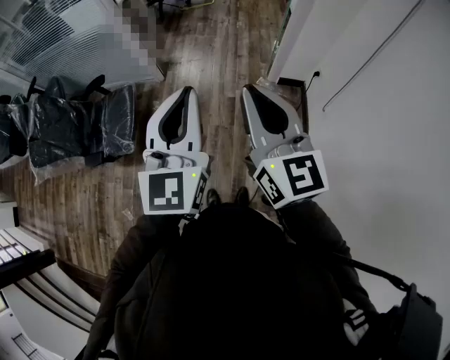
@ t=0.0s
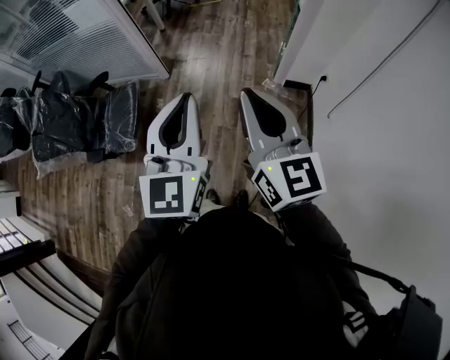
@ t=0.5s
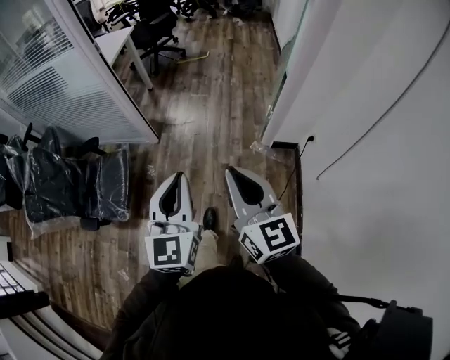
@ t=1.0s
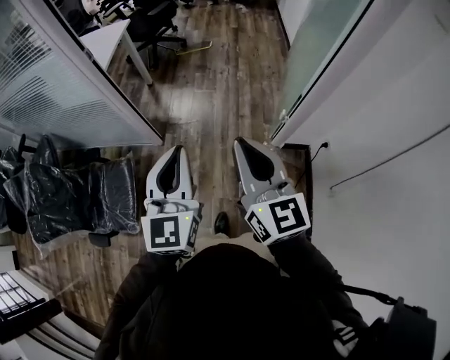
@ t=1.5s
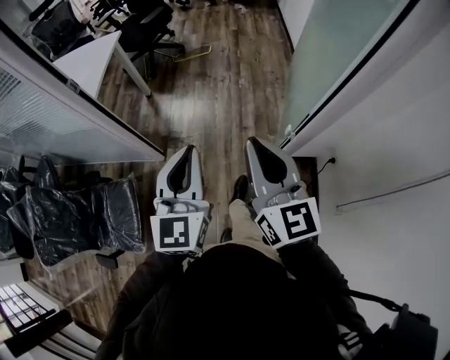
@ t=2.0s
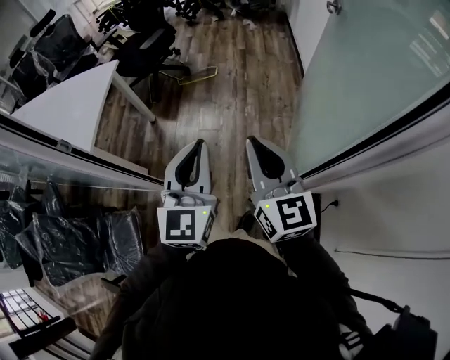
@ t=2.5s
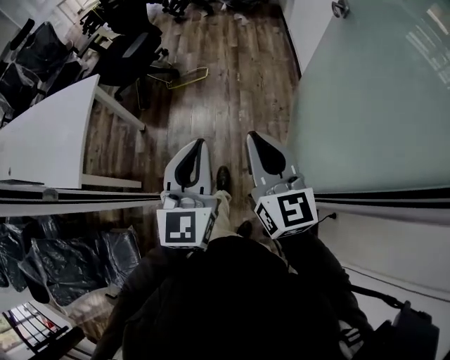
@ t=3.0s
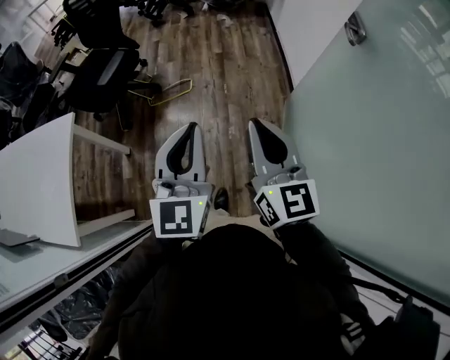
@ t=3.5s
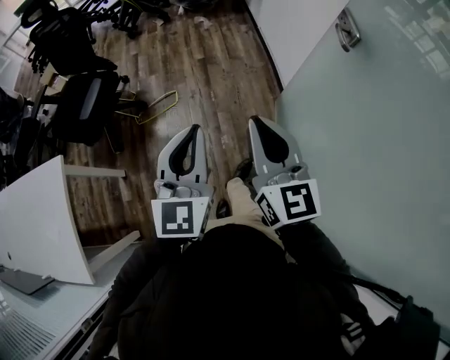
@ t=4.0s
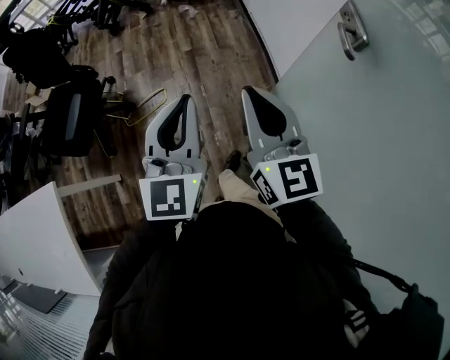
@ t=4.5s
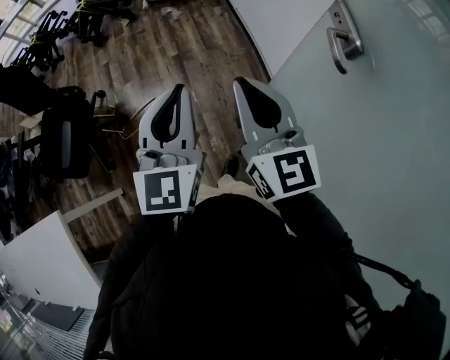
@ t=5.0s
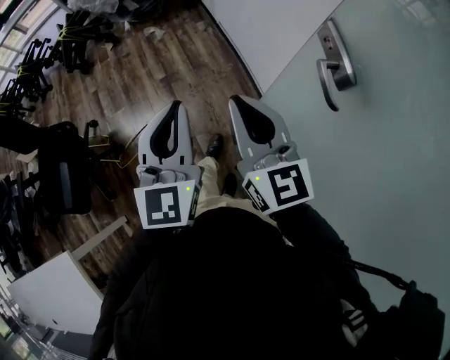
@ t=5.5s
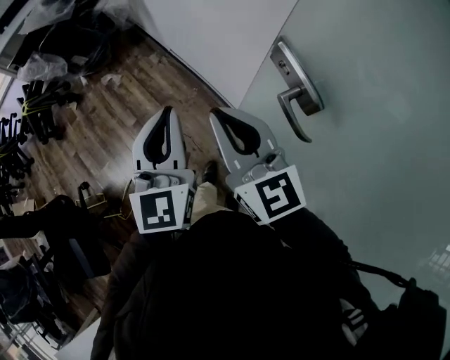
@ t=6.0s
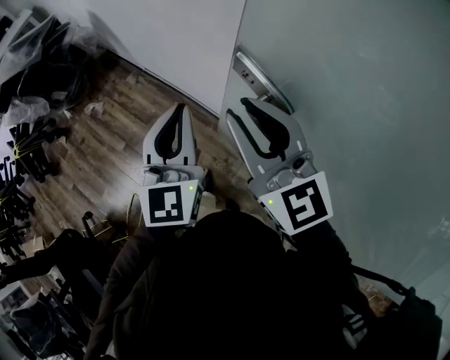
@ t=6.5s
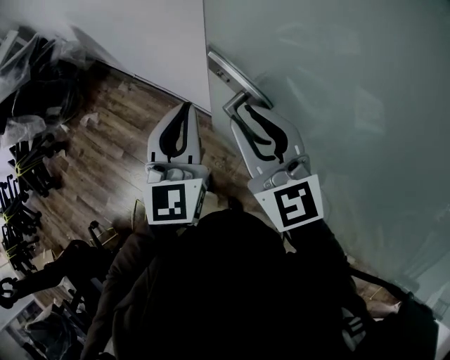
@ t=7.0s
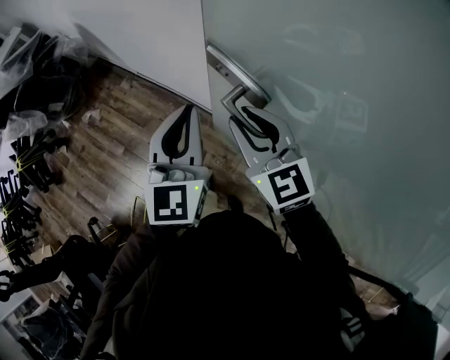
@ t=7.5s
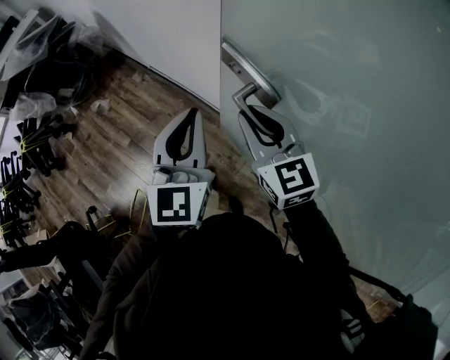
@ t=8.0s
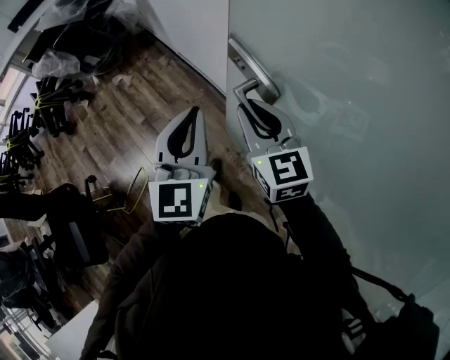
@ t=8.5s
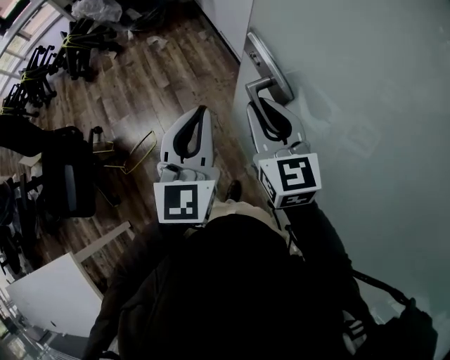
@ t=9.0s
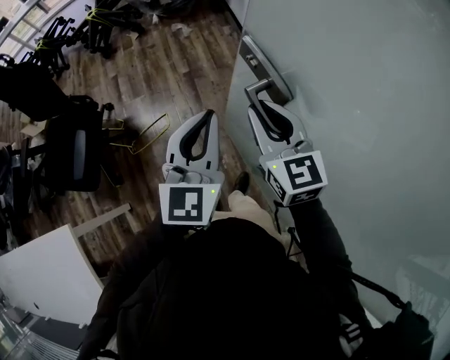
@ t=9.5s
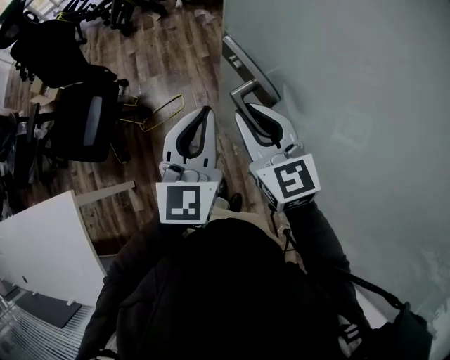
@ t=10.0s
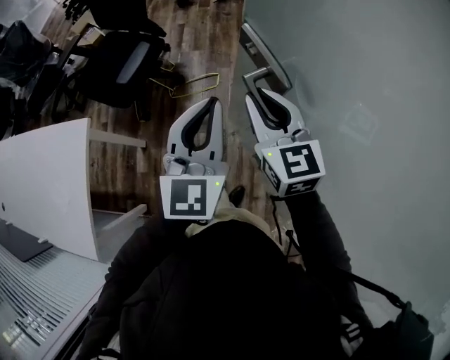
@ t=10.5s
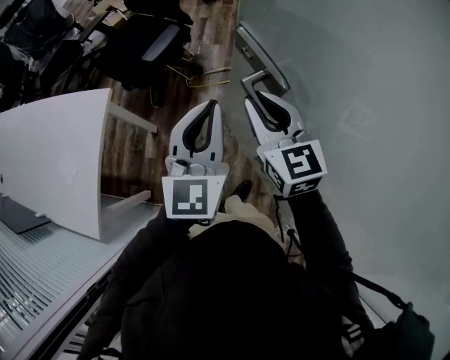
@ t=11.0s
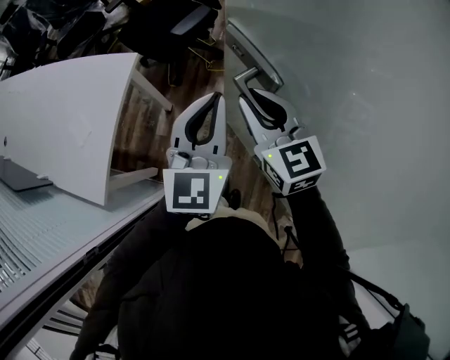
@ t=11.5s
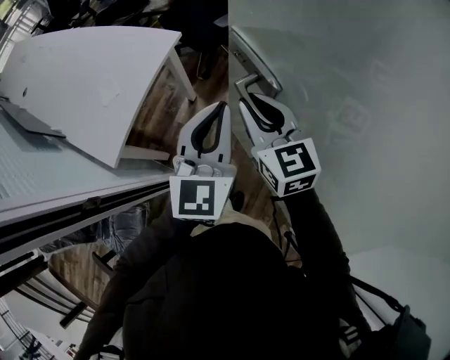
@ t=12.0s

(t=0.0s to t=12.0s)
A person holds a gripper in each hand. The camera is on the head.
t=0.0s - t=2.0s: The two grippers travel together, forward, roughly 50 cm.
t=2.0s - t=4.0s: Both grippers are carried forward, approximately 80 cm.
t=4.0s - t=6.0s: The two grippers travel together, forward and to the right, about 50 cm. The left gripper changes its angle by roughly 30 degrees.
t=6.0s - t=8.0s: Both grippers move to the right, about 15 cm.
t=8.0s - t=10.0s: The pair of grippers is taken approximately 50 cm. The left gripper turns by roughly 40 degrees, while the right gripper swivels about 40 degrees.
t=10.0s - t=12.0s: The two grippers travel together, approximately 50 cm. The right gripper changes its angle by some 40 degrees, while the left gripper rotates about 40 degrees.

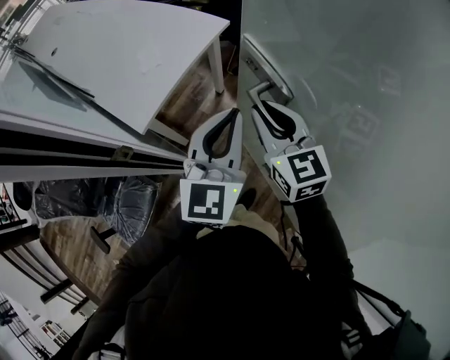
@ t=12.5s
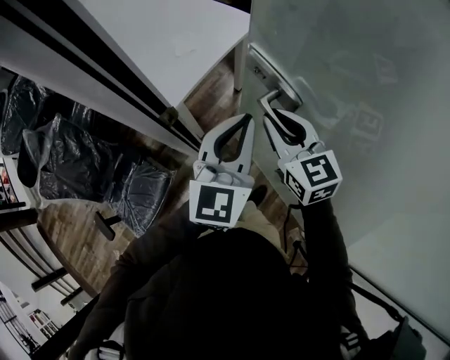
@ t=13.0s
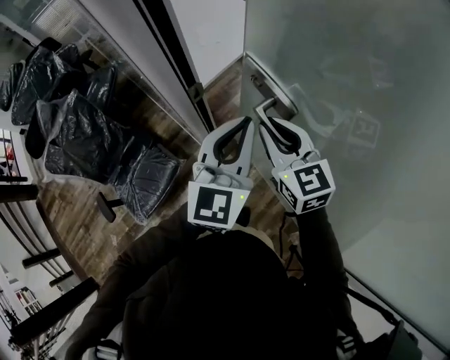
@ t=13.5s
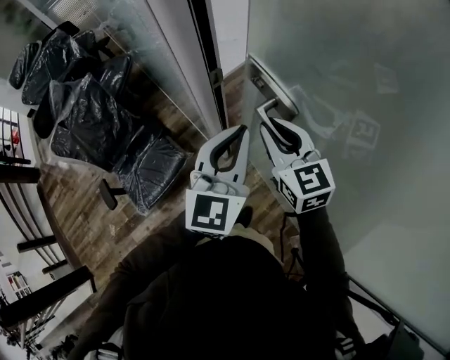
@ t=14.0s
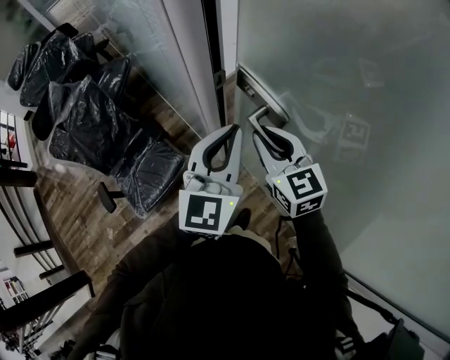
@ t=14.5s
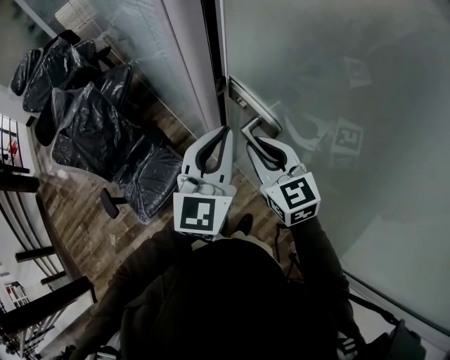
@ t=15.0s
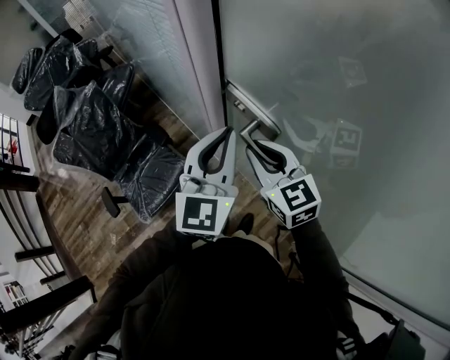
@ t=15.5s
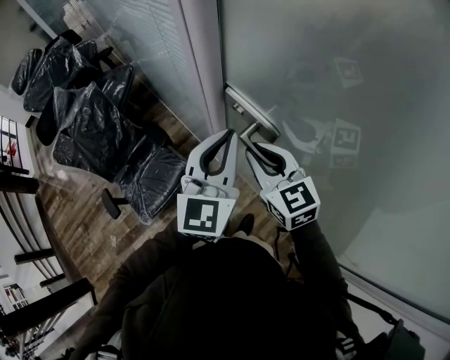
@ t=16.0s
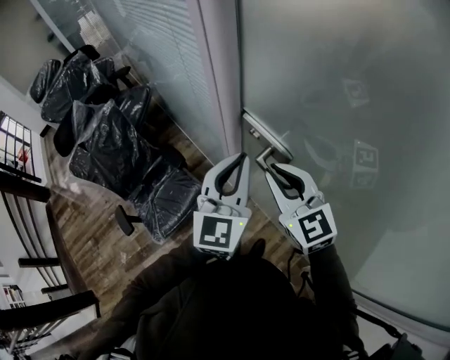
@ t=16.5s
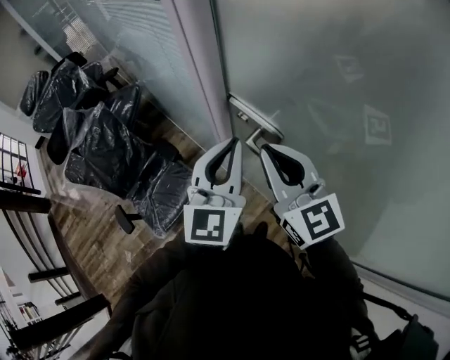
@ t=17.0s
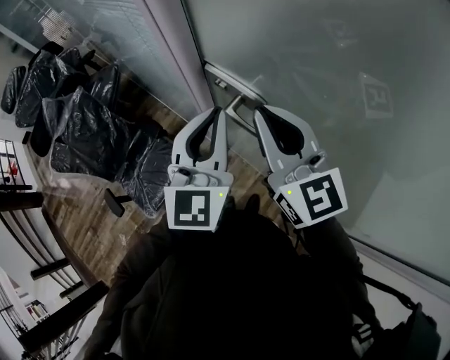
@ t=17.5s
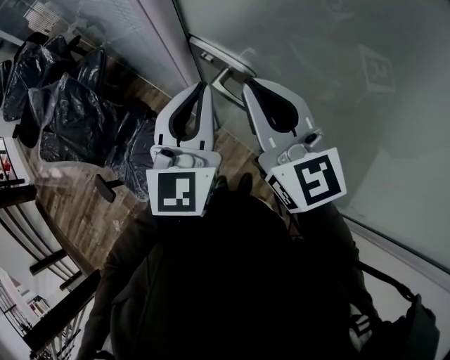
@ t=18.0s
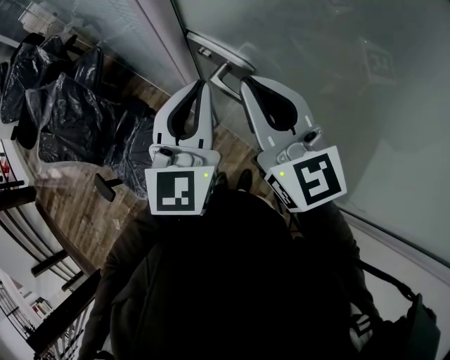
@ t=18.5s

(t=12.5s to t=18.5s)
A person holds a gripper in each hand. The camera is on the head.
t=12.5s - t=14.5s: Both grippers travel together to the left and backward, roughly 30 cm.
t=14.5s - t=16.5s: The right gripper moves approximately 10 cm.
t=16.5s - t=18.5s: The right gripper moves upward, roughly 5 cm.

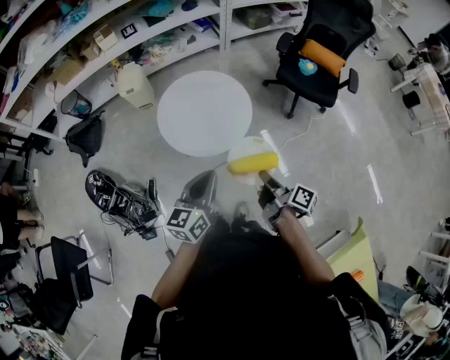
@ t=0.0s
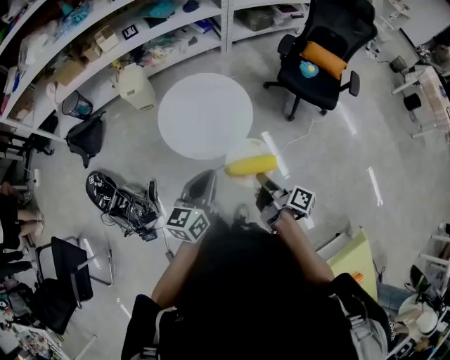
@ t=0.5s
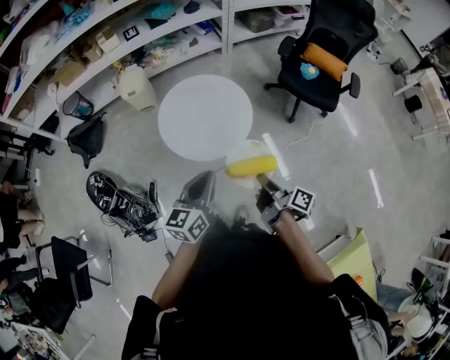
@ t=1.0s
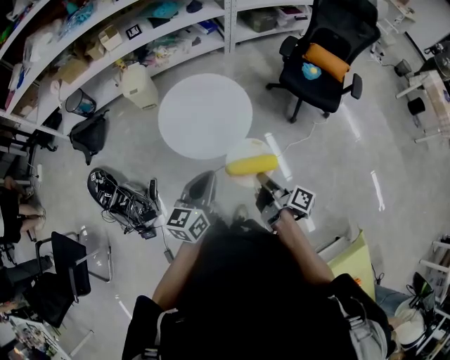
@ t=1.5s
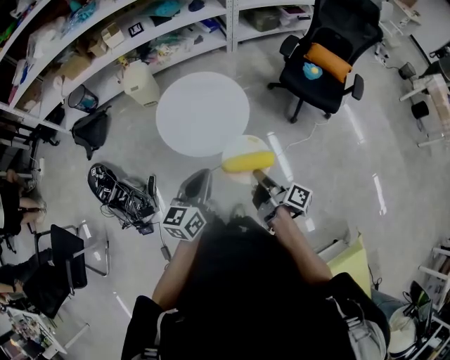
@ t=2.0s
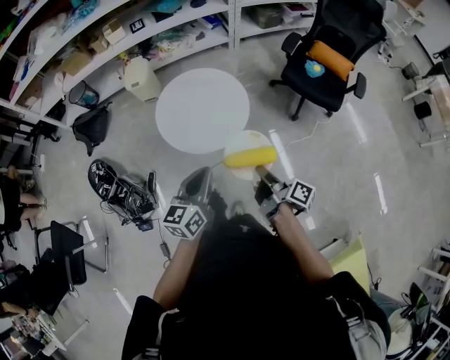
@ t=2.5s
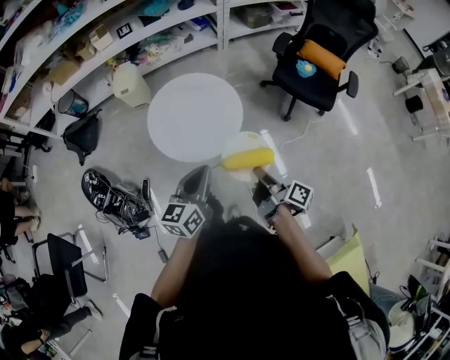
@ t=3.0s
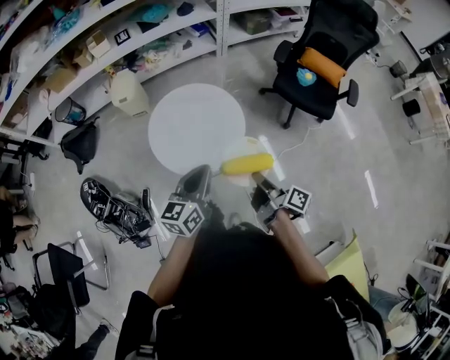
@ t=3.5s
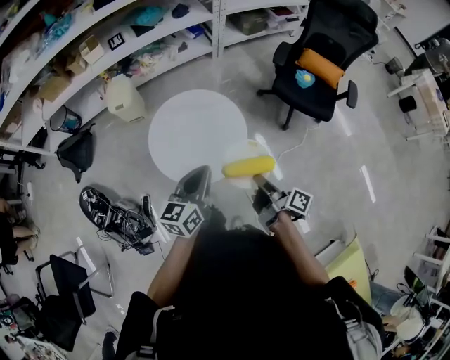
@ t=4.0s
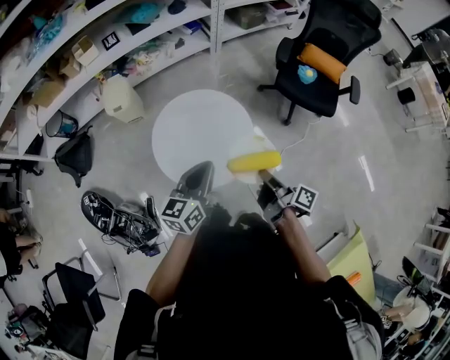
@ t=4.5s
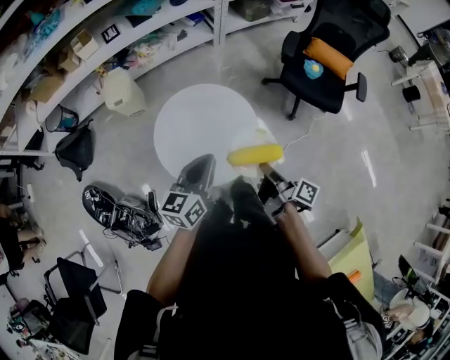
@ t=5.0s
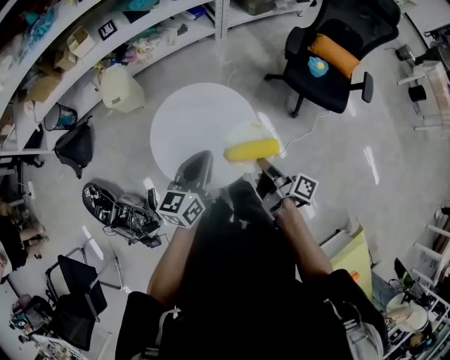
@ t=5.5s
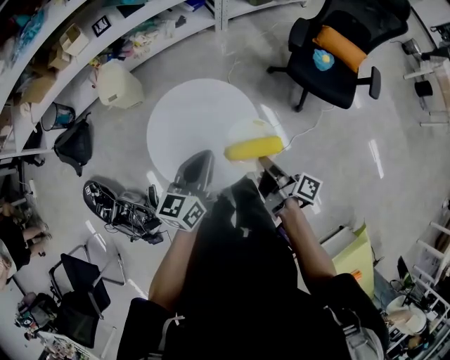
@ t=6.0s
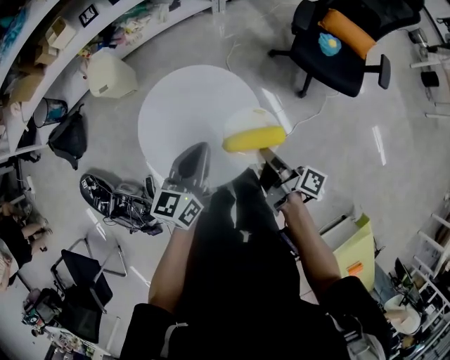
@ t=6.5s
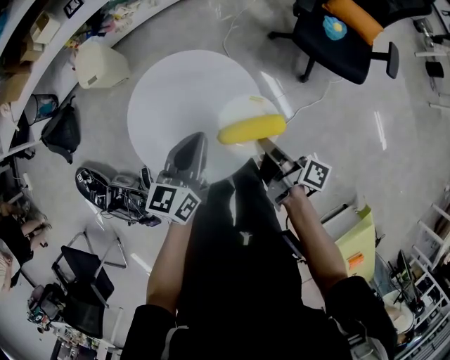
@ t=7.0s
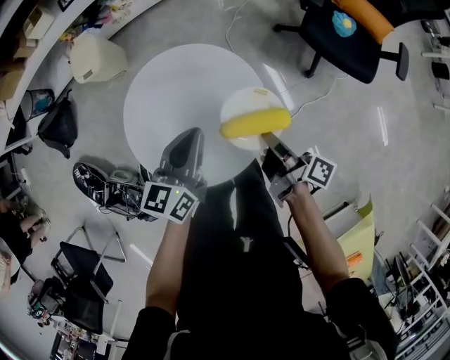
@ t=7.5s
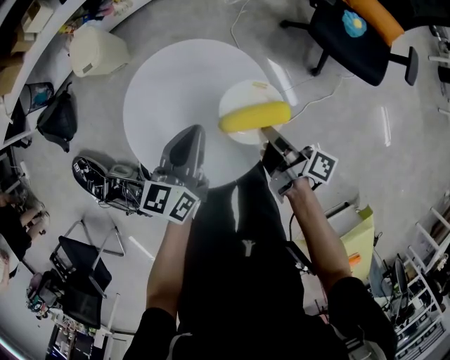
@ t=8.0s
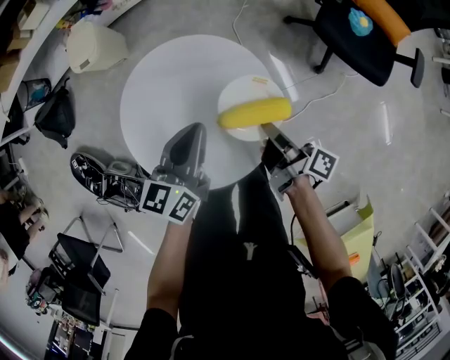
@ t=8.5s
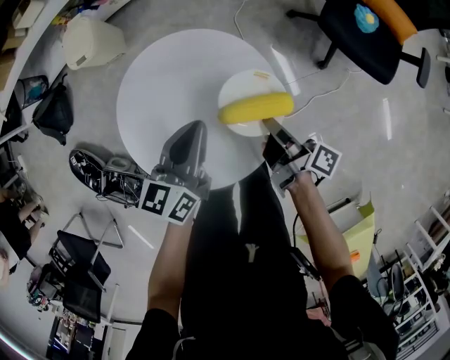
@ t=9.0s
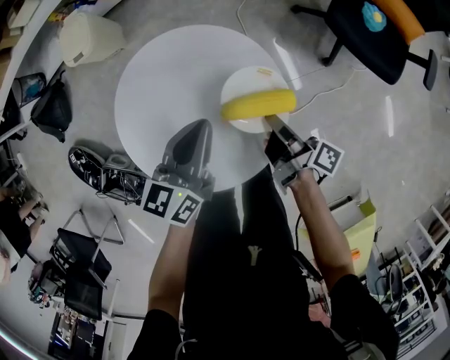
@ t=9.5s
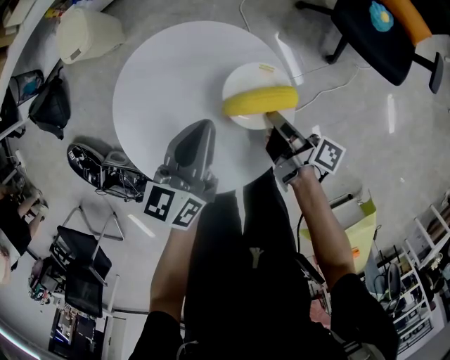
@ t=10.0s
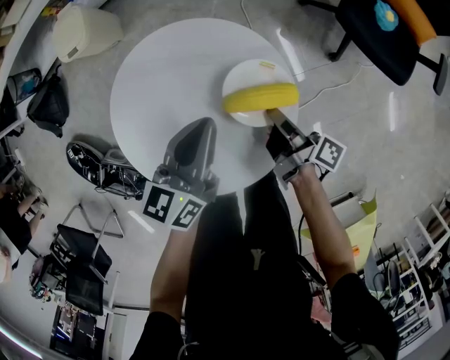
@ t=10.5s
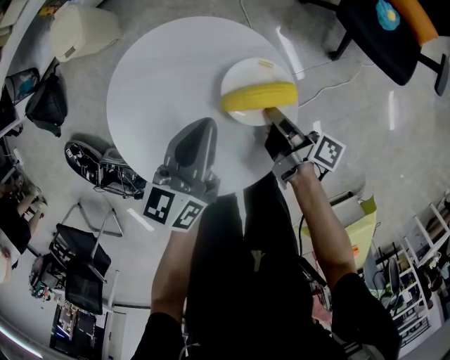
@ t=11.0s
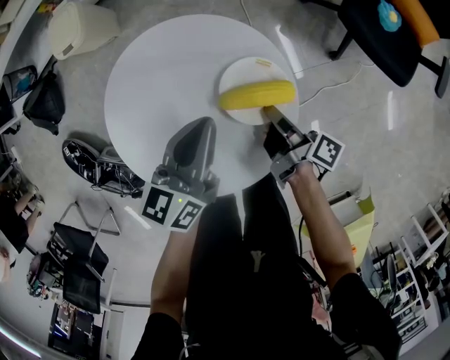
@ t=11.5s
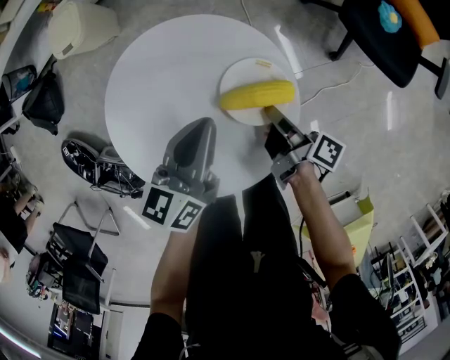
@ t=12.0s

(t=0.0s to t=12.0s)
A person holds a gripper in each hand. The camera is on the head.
t=2.0s - t=4.0s: The left gripper moves roughly 15 cm.
t=4.0s - t=6.0s: The left gripper ends up roughly 15 cm from where it was.
t=6.0s - t=8.0s: The left gripper travels downward by some 10 cm.
t=8.0s - t=10.0s: The left gripper is displaced downward by about 5 cm.
